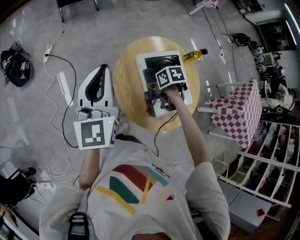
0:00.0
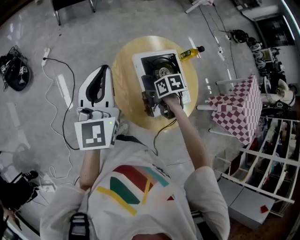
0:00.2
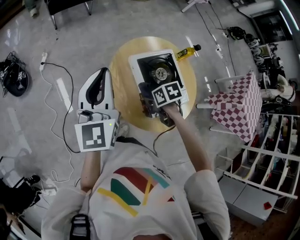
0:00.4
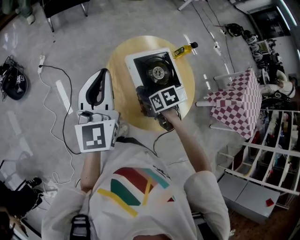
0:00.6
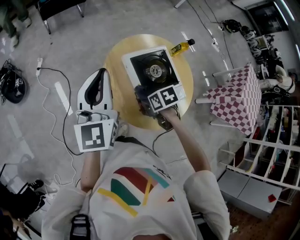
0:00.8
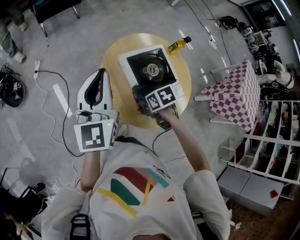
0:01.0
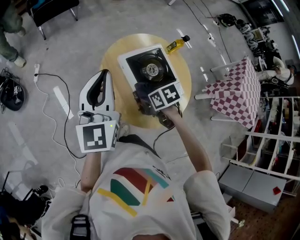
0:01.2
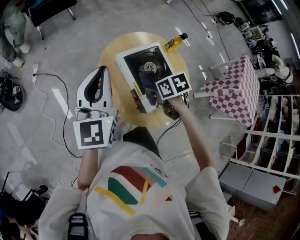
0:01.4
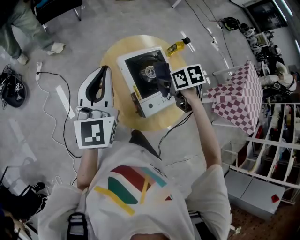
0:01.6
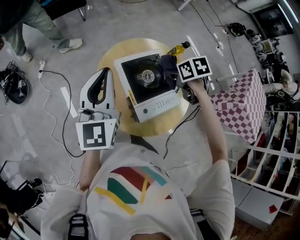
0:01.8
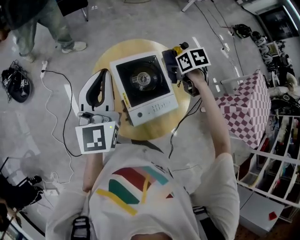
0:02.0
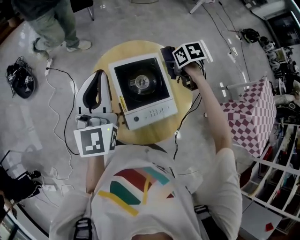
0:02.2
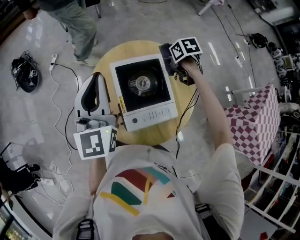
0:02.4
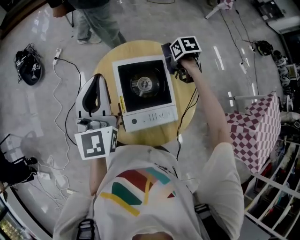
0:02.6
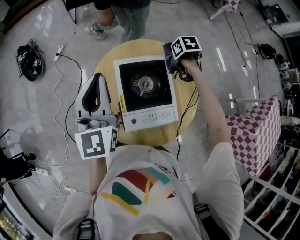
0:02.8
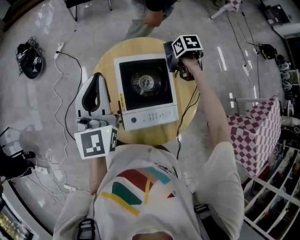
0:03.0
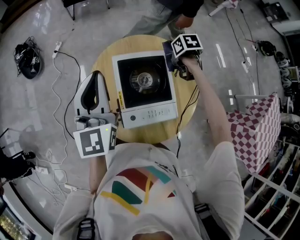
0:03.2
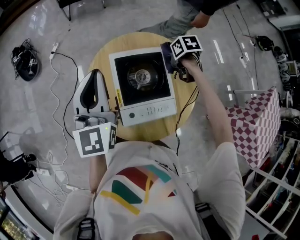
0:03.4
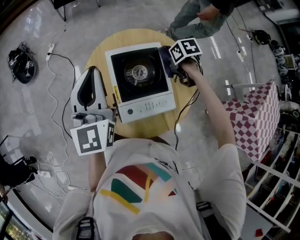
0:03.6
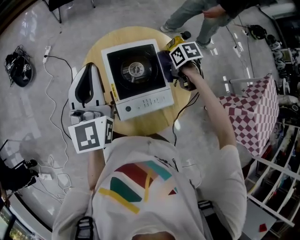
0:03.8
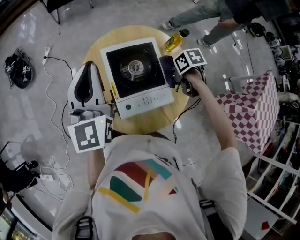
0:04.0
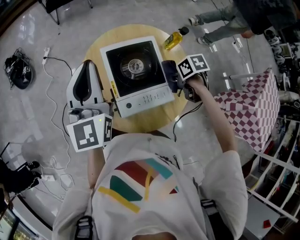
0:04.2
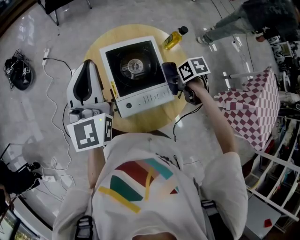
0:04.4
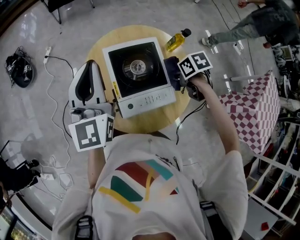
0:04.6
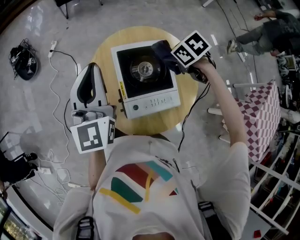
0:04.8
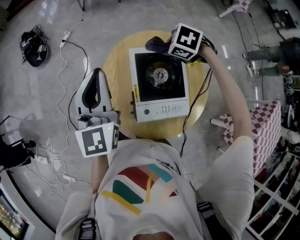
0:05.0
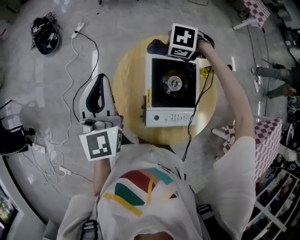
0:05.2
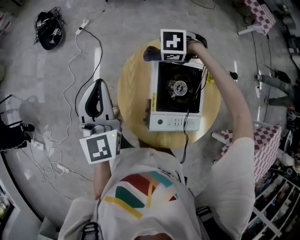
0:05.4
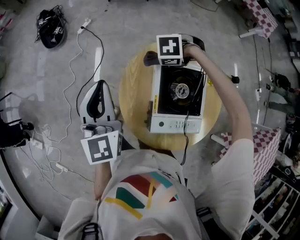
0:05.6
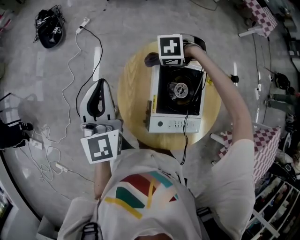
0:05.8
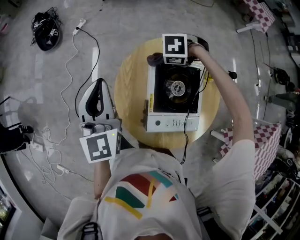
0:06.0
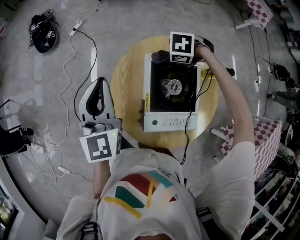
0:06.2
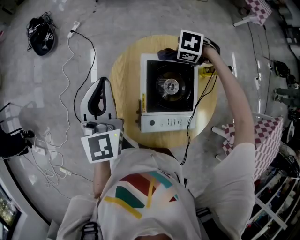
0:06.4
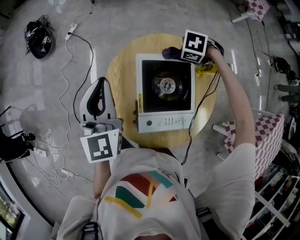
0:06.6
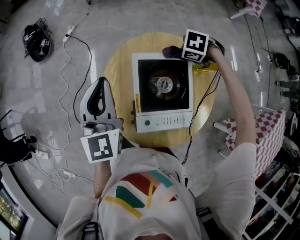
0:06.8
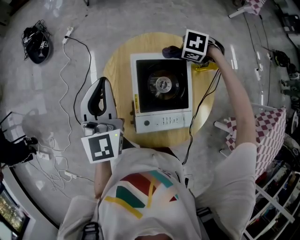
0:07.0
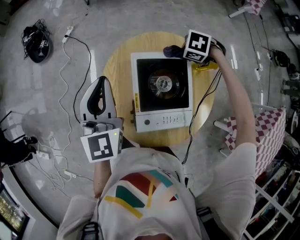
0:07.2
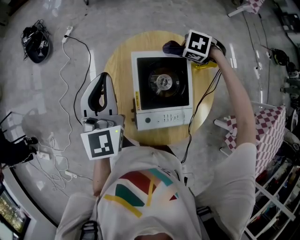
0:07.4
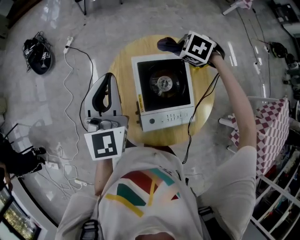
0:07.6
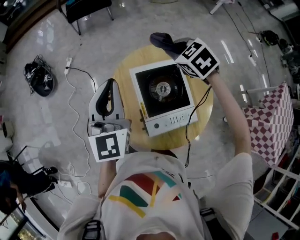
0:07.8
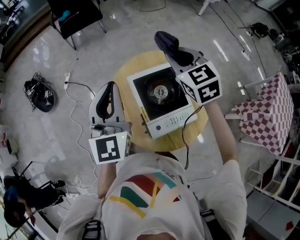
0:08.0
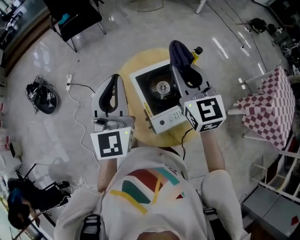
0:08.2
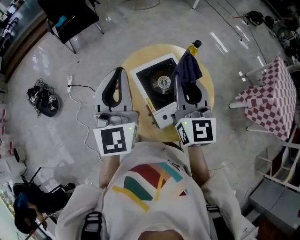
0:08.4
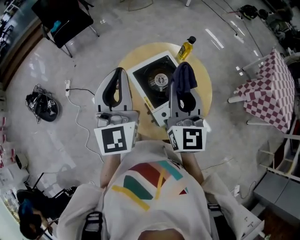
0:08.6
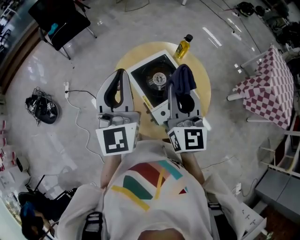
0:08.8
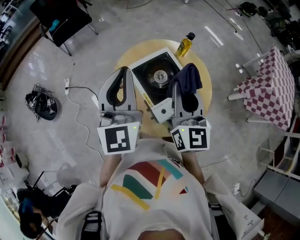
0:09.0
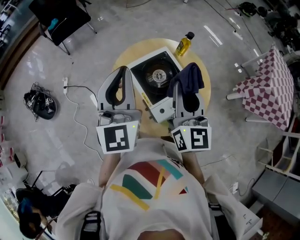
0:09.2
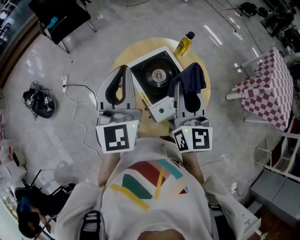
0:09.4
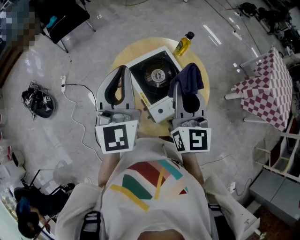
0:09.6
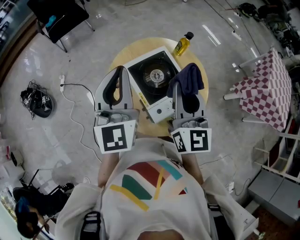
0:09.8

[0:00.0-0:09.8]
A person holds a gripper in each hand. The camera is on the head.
0:00.0 to 0:01.4: The left gripper moves to the right, about 10 cm; the right gripper travels backward and upward by roughly 10 cm.
0:01.4 to 0:02.8: The right gripper shifts about 30 cm to the right and forward. The left gripper is displaced to the right by approximately 10 cm, and swivels roughly 20 degrees.
0:02.8 to 0:04.2: The right gripper is displaced backward by some 20 cm.
0:04.2 to 0:05.6: The left gripper changes place by some 15 cm, and swivels roughly 20 degrees, while the right gripper reaches some 10 cm upward, then returns, and twists about 90 degrees counterclockwise, seen from behind.
0:05.6 to 0:07.0: The left gripper ends up approximately 10 cm from where it was; the right gripper ends up about 20 cm from where it was, and swivels roughly 20 degrees.
0:07.0 to 0:08.4: The right gripper is displaced upward by approximately 30 cm, and tilts its fingers roughly 80 degrees upward, while the left gripper shifts approximately 15 cm upward, and rotates approximately 30 degrees.
0:08.4 to 0:09.8: The grippers make only small movements.

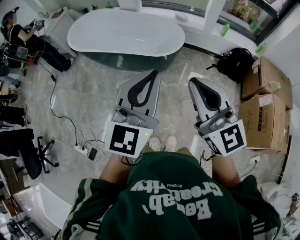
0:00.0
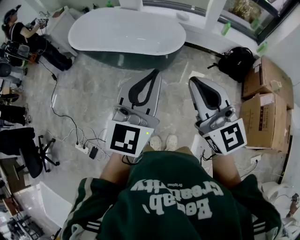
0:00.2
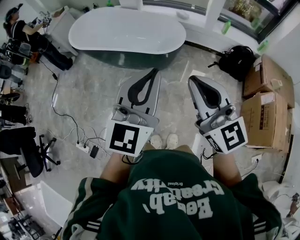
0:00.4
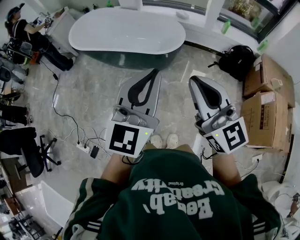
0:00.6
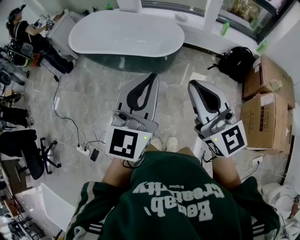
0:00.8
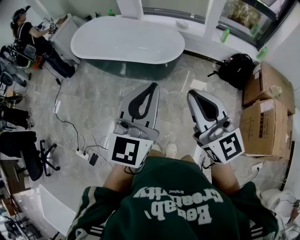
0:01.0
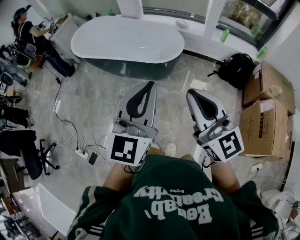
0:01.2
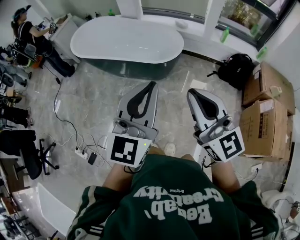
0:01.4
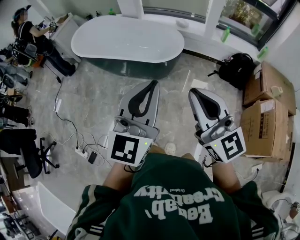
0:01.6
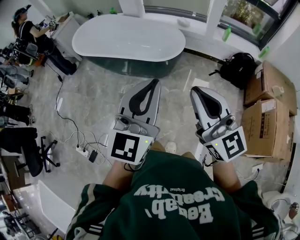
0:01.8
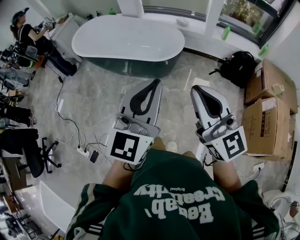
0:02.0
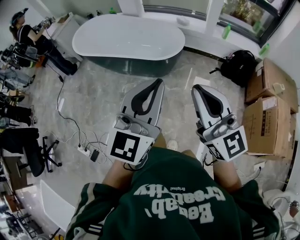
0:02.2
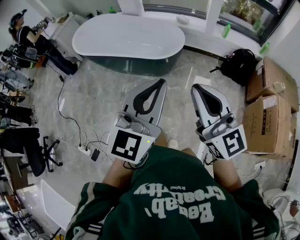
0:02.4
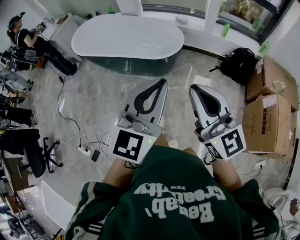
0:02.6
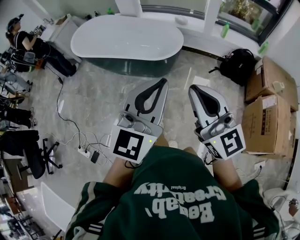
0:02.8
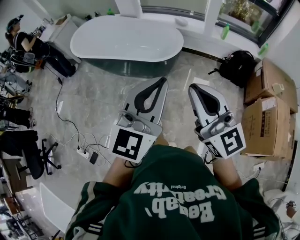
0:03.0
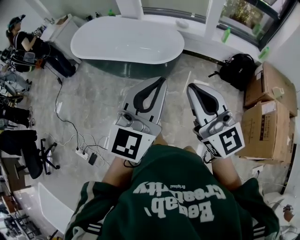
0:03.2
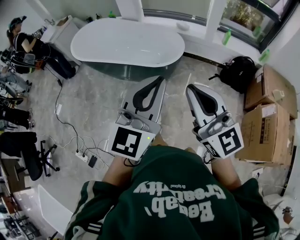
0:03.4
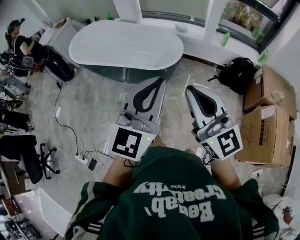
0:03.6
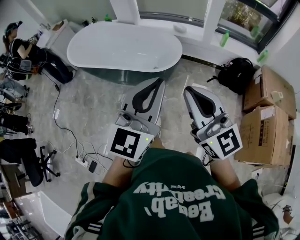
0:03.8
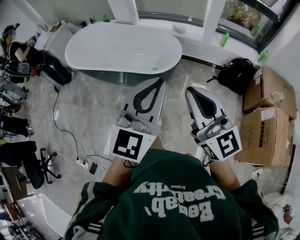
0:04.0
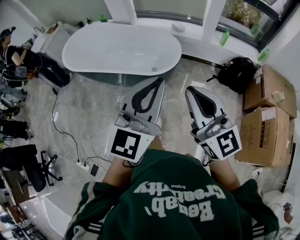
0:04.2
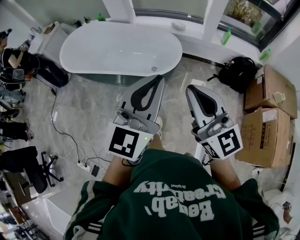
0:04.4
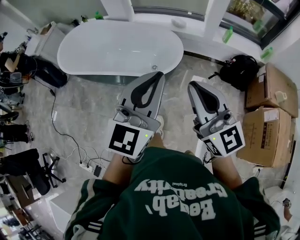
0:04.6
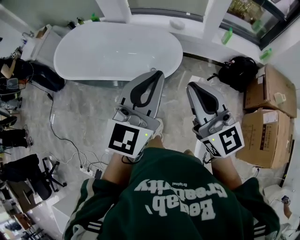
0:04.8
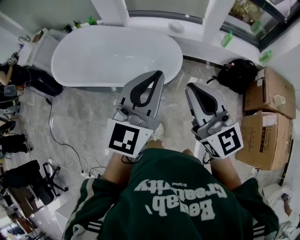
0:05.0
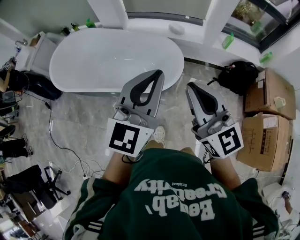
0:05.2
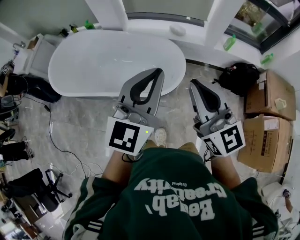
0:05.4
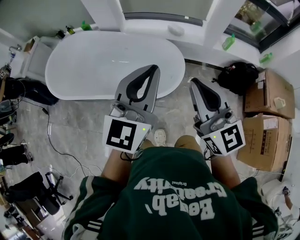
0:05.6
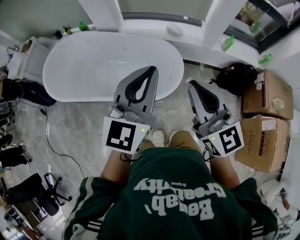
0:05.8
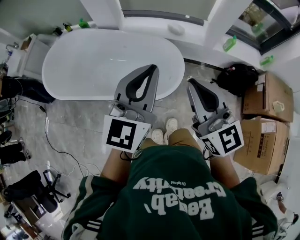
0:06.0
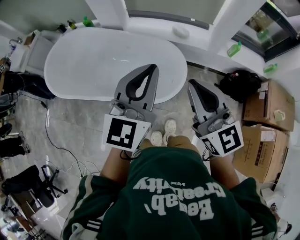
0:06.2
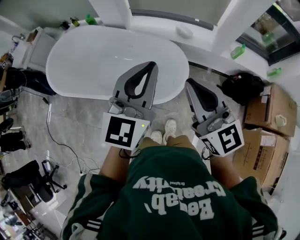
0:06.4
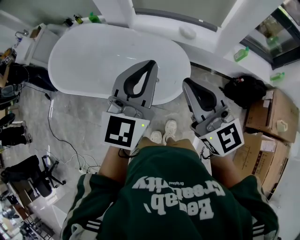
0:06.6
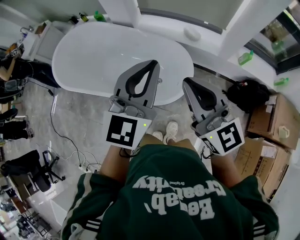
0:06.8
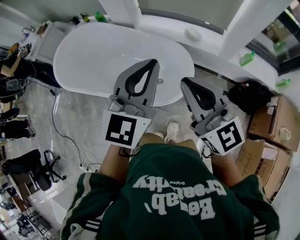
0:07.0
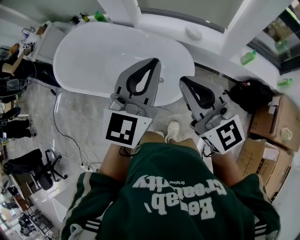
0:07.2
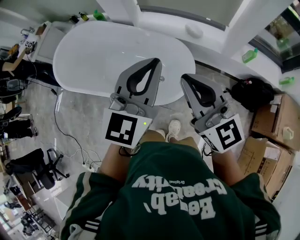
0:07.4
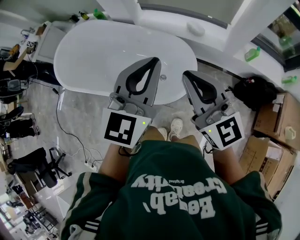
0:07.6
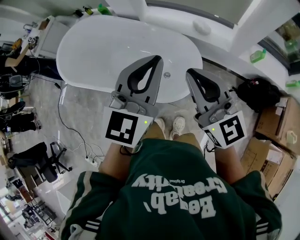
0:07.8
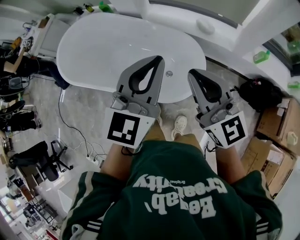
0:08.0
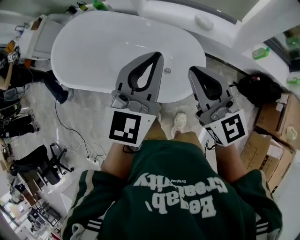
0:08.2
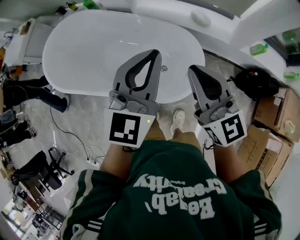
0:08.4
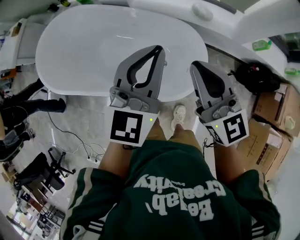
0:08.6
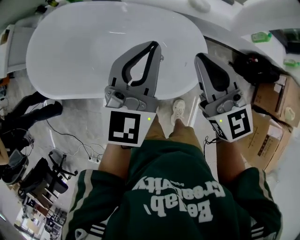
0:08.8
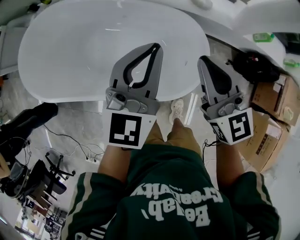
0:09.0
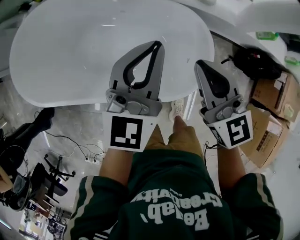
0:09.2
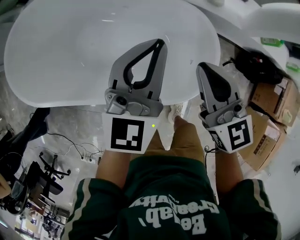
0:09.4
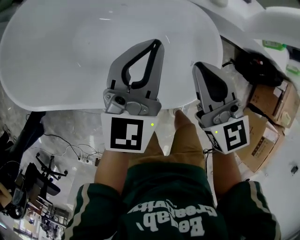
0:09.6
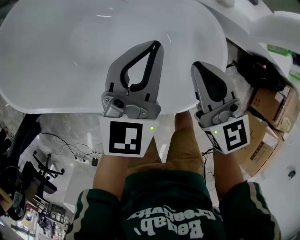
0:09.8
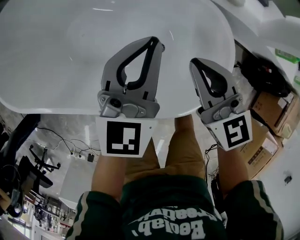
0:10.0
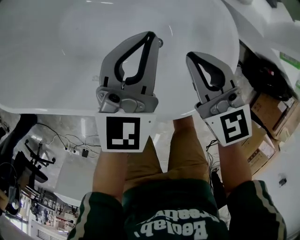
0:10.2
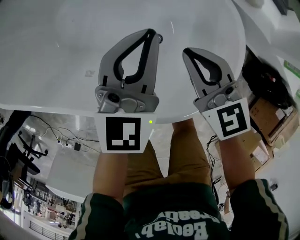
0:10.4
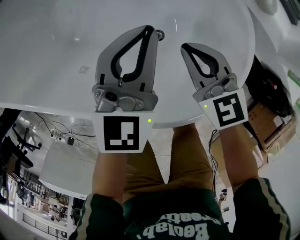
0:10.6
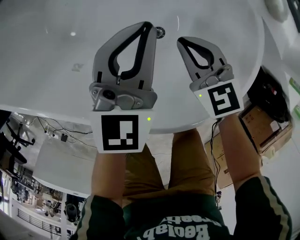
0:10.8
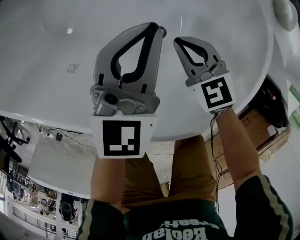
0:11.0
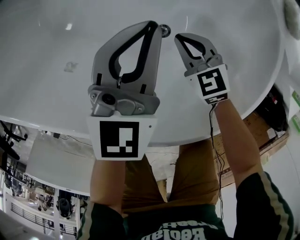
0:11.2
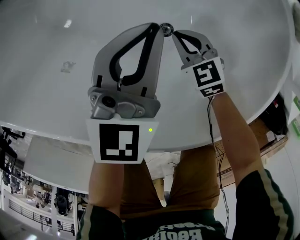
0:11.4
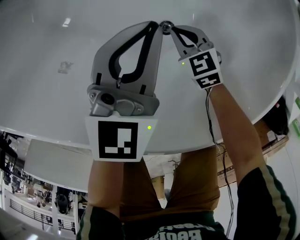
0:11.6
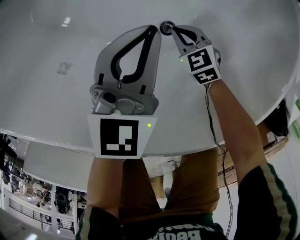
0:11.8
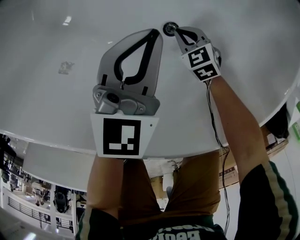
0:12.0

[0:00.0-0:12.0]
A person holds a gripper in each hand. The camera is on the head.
0:00.0 to 0:01.6: The right gripper is displaced to the right by roughly 5 cm; the left gripper shifts by approximately 5 cm.
0:01.6 to 0:03.0: The grippers stay close to where they were, moving slightly.
0:03.0 to 0:04.4: Both grippers travel together forward, some 15 cm.
0:04.4 to 0:06.0: The grippers both shift forward by about 30 cm.
0:06.0 to 0:07.6: The right gripper moves forward, some 10 cm. The left gripper heads forward and to the right, covering roughly 10 cm.
0:07.6 to 0:09.0: The grippers both shift forward, downward and to the left by about 25 cm.
0:09.0 to 0:10.4: Both grippers travel together downward, roughly 30 cm. The right gripper changes its angle by approximately 30 degrees.
0:10.4 to 0:12.0: The left gripper is displaced downward by approximately 20 cm. The right gripper moves downward, some 40 cm, and changes its angle by some 40 degrees.

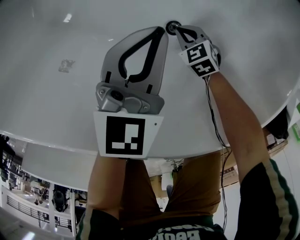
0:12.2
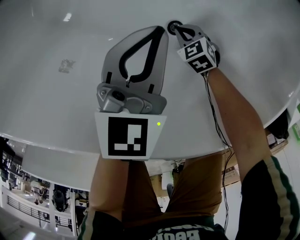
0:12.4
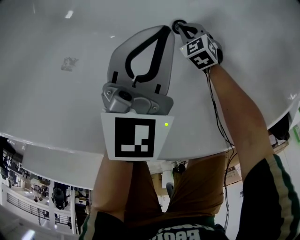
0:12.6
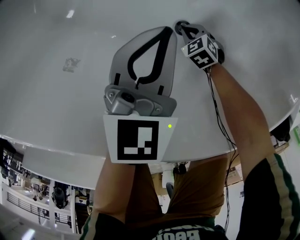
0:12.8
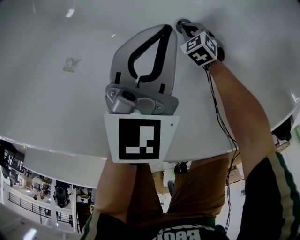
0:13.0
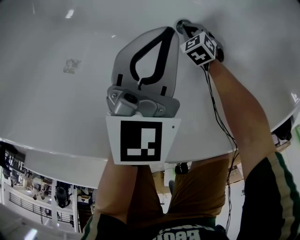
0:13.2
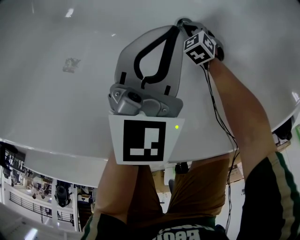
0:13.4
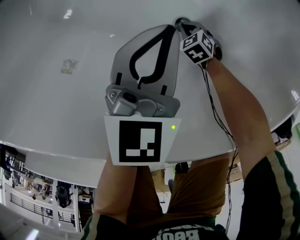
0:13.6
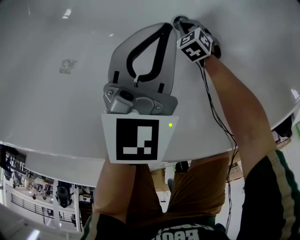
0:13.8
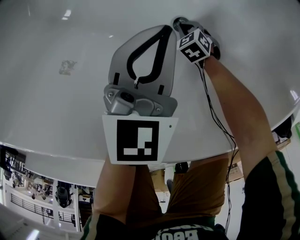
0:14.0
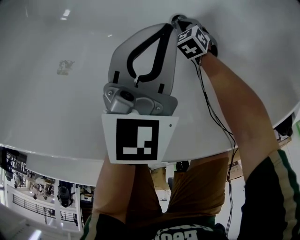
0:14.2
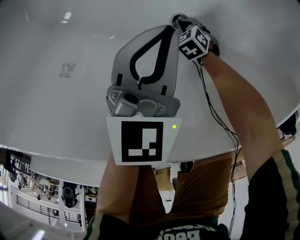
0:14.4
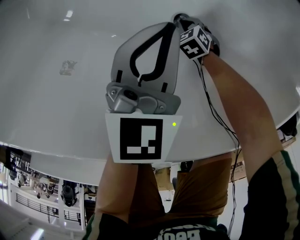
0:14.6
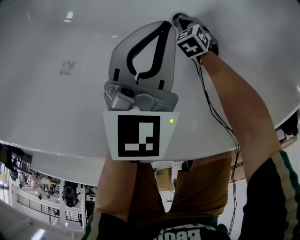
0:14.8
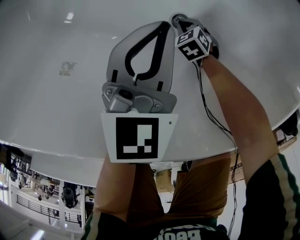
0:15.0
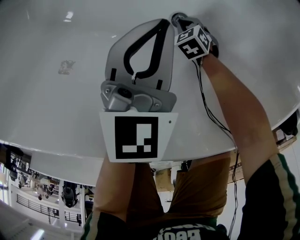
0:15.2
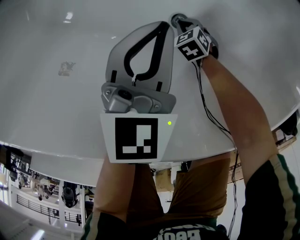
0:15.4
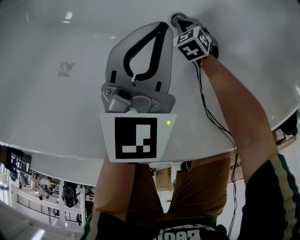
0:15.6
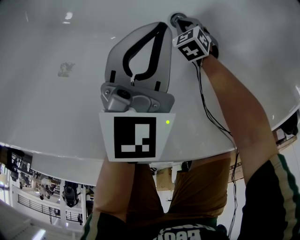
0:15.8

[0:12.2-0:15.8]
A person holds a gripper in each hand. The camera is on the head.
0:12.2 to 0:14.0: The right gripper is displaced downward by some 10 cm.
0:14.0 to 0:15.8: The grippers move only a little.
